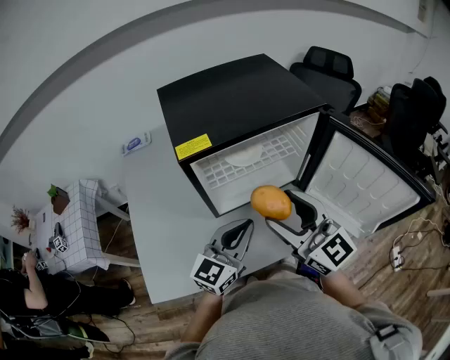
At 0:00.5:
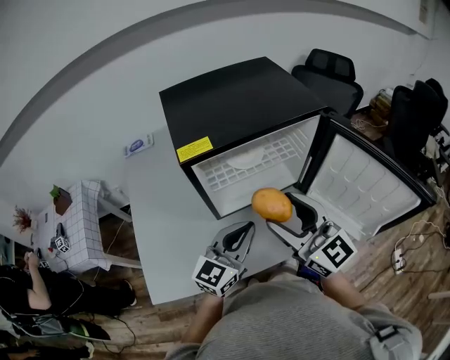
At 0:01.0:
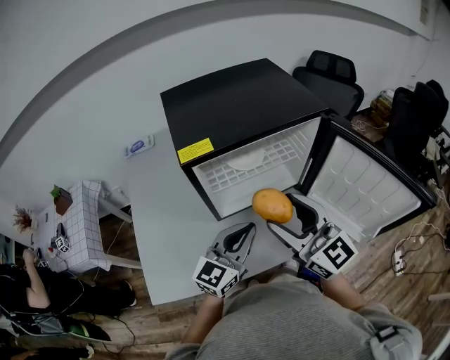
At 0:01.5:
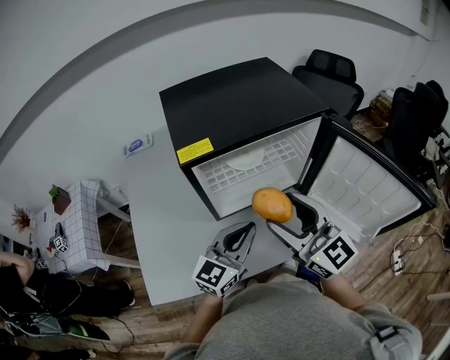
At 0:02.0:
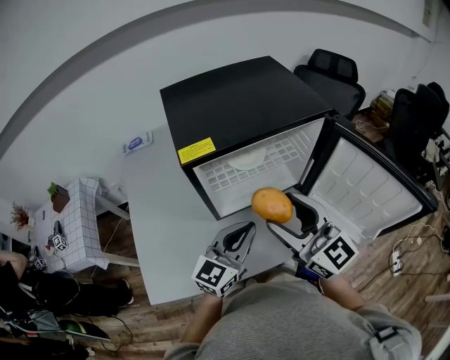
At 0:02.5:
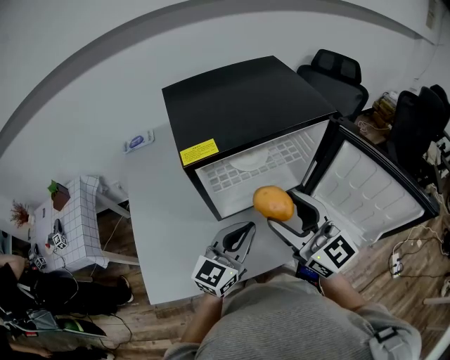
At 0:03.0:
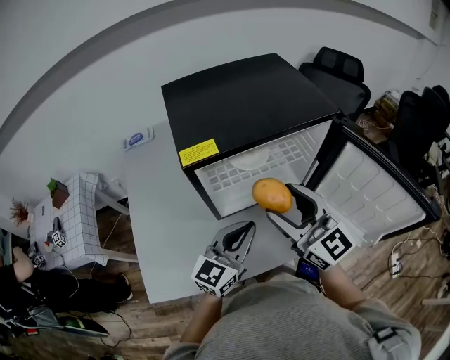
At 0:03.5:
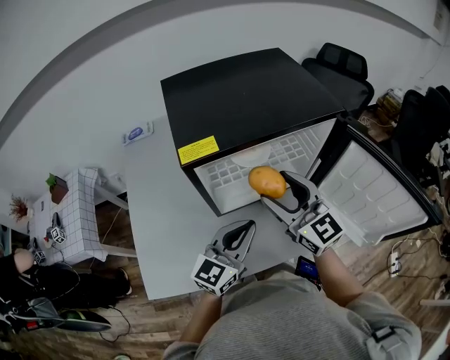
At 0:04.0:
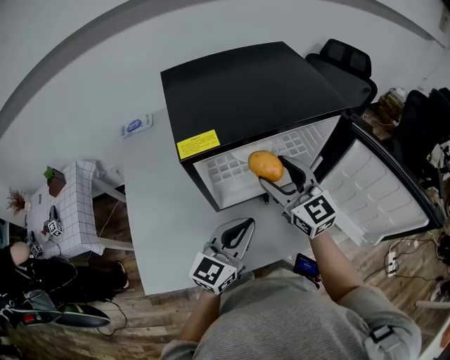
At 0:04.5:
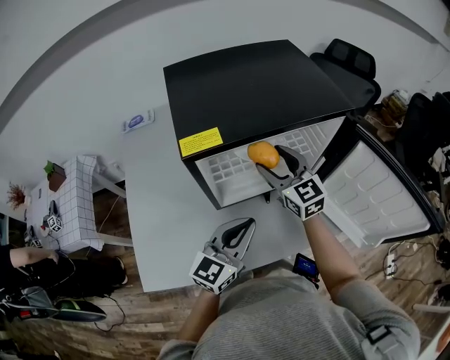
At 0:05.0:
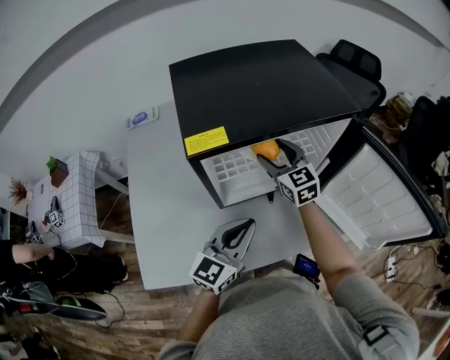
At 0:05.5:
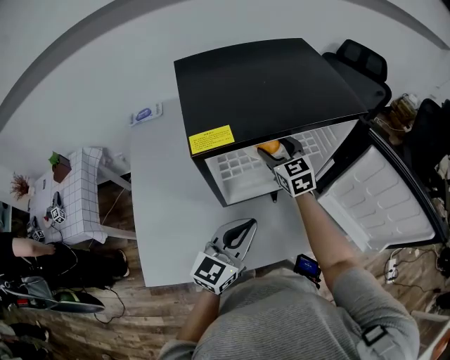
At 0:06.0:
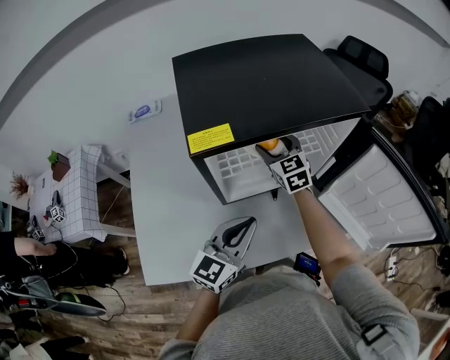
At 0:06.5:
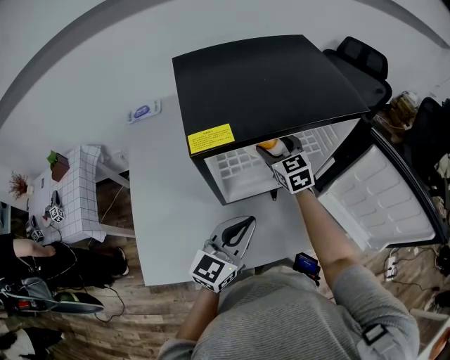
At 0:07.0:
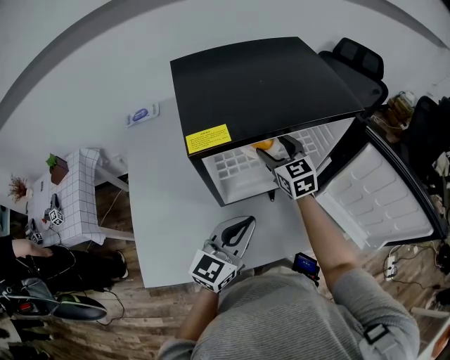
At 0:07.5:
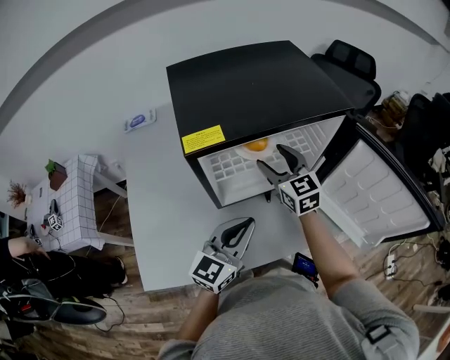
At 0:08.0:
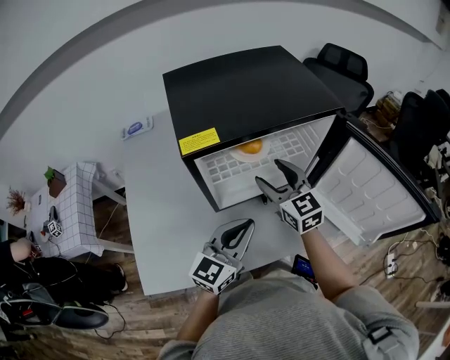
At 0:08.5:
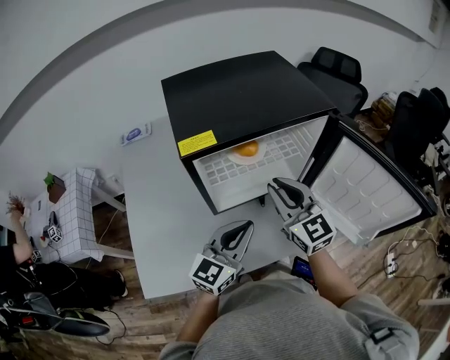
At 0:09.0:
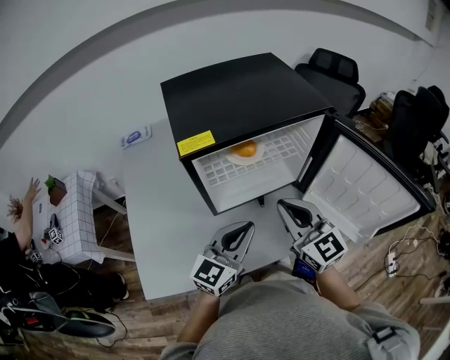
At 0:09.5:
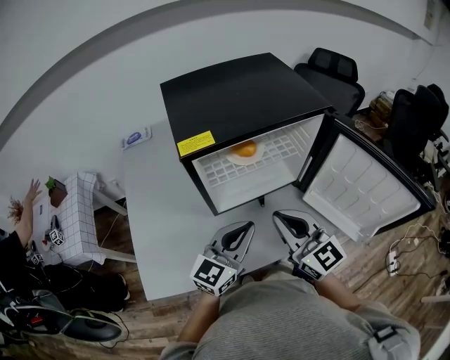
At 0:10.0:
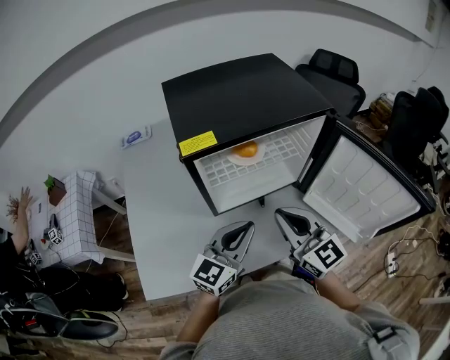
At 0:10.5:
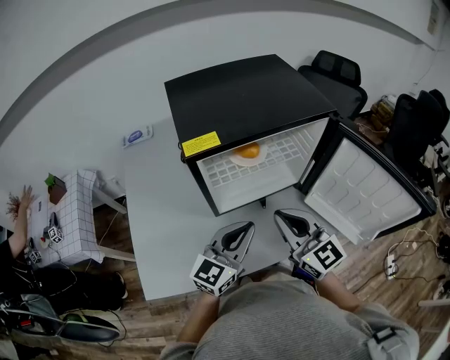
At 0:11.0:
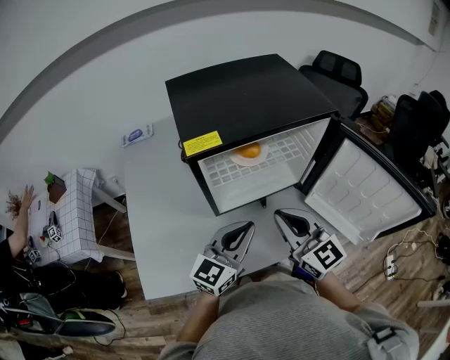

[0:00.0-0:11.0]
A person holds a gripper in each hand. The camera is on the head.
0:00.0 to 0:02.0: Neither gripper changes place.
0:02.0 to 0:03.5: The right gripper is displaced forward by approximately 10 cm.
0:03.5 to 0:05.5: The right gripper moves forward and downward, approximately 20 cm, and swivels approximately 20 degrees.
0:05.5 to 0:07.5: The right gripper goes approximately 5 cm backward.
0:07.5 to 0:09.0: The right gripper travels backward and upward by some 20 cm, and closes.
0:09.0 to 0:11.0: There are only small adjustments of the grippers.

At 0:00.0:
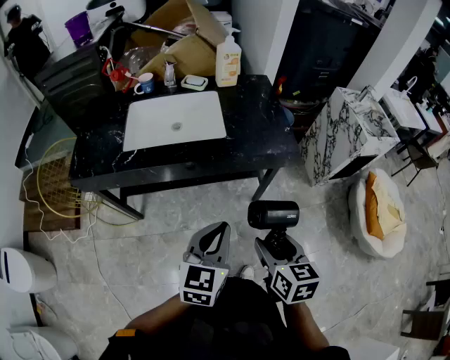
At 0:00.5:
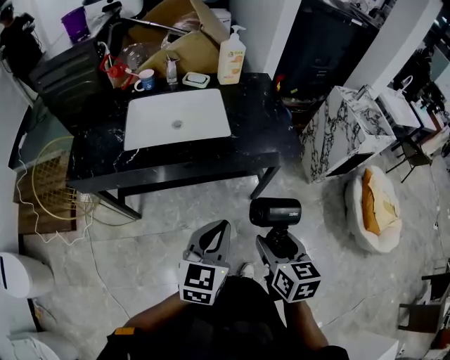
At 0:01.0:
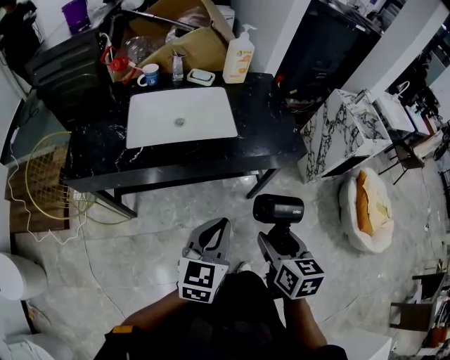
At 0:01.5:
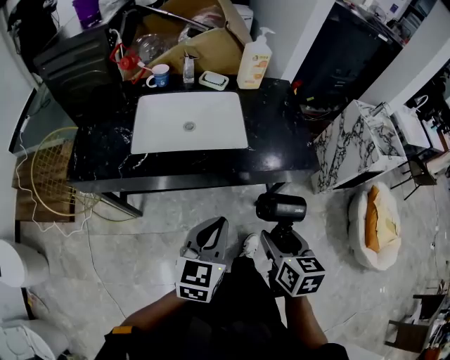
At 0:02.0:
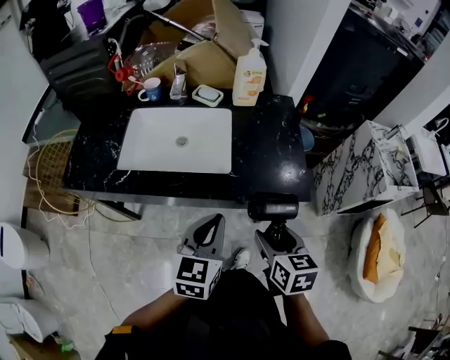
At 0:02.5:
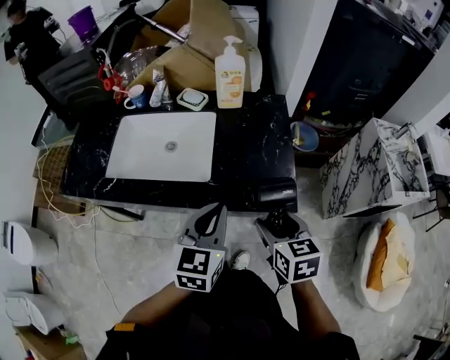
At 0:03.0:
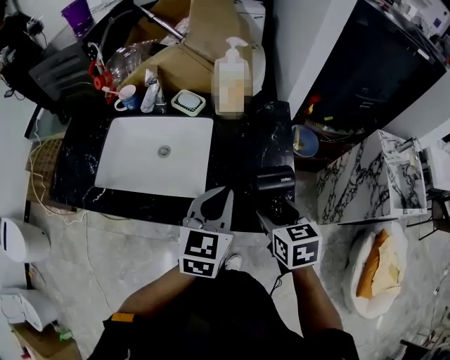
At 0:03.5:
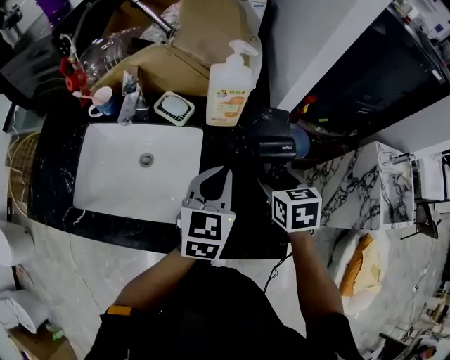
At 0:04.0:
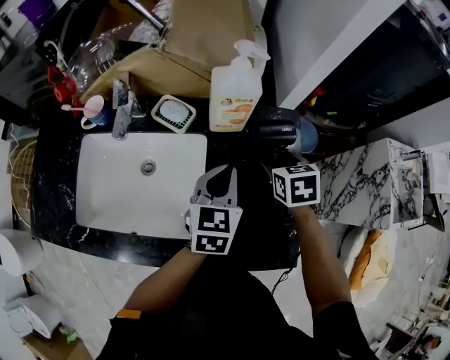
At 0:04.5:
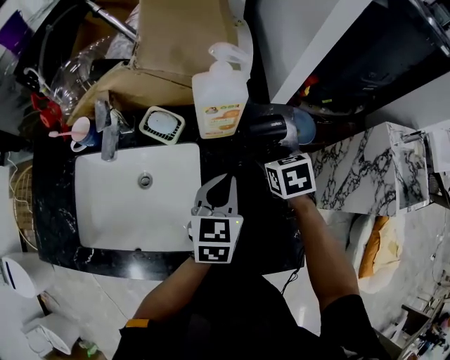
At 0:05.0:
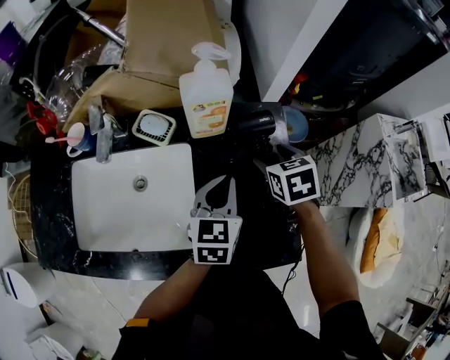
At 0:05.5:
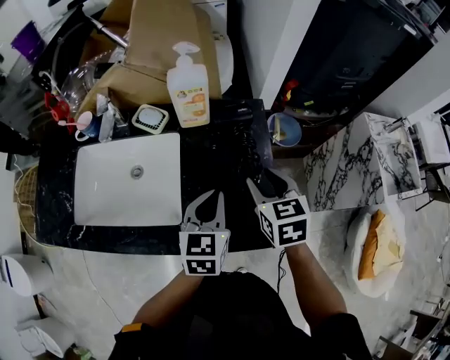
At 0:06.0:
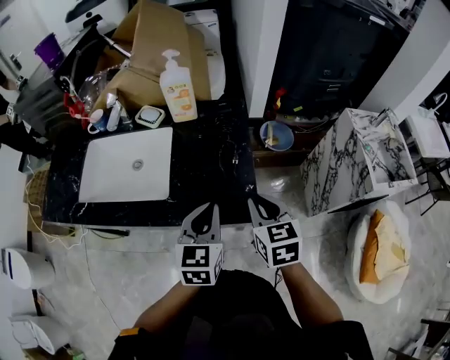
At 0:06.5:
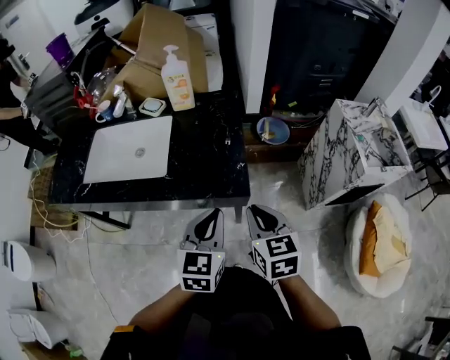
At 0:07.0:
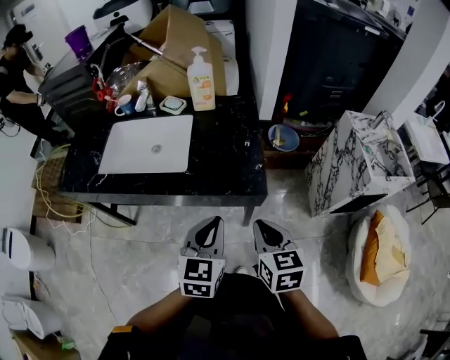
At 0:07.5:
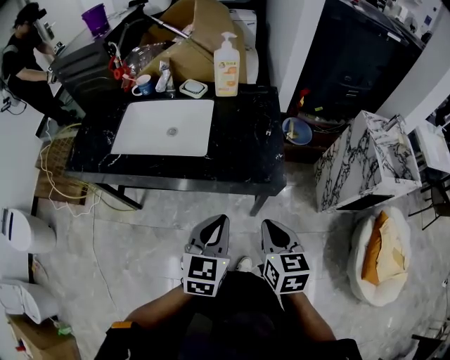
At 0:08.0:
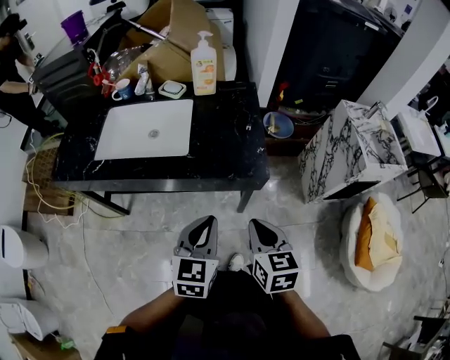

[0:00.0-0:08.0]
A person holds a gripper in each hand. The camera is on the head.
0:00.0 to 0:02.0: The grippers both shift forward by roughly 20 cm.
0:02.0 to 0:04.0: The grippers both shift forward by about 40 cm. The right gripper rotates roughly 20 degrees.
0:04.0 to 0:06.0: The right gripper heads backward, covering about 25 cm, swivels some 20 degrees, and closes its fingers, while the left gripper moves backward and to the right, some 25 cm.
0:06.0 to 0:08.0: The grippers both shift backward by roughly 20 cm.

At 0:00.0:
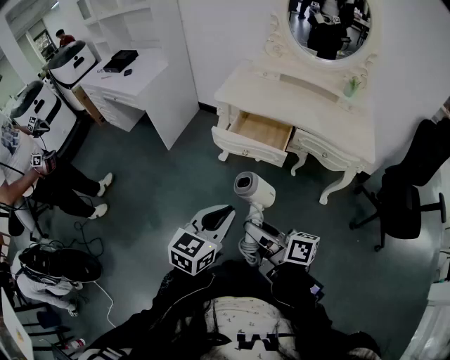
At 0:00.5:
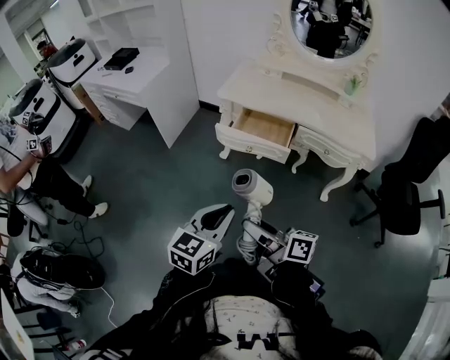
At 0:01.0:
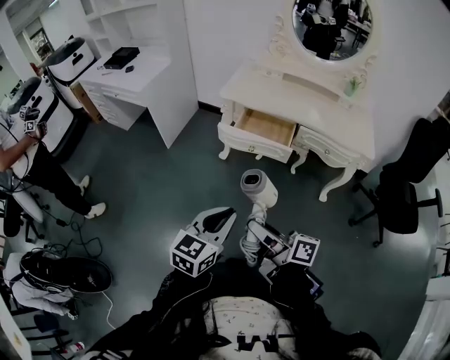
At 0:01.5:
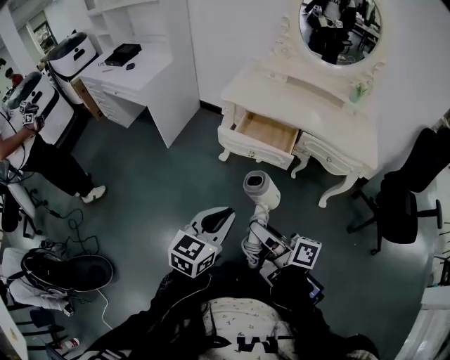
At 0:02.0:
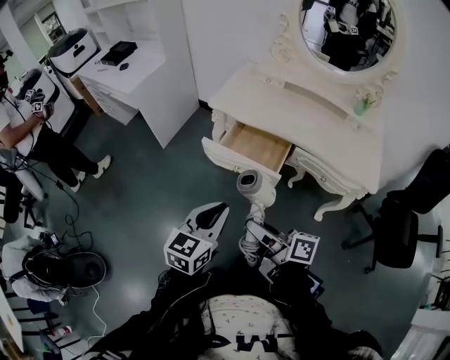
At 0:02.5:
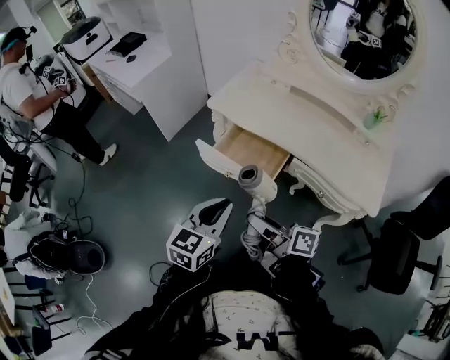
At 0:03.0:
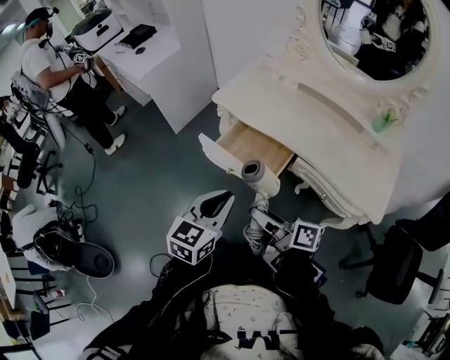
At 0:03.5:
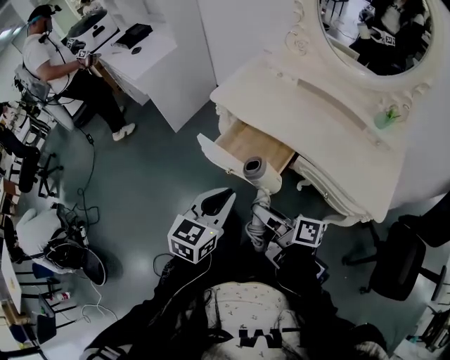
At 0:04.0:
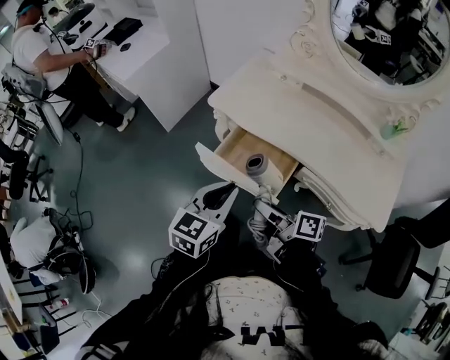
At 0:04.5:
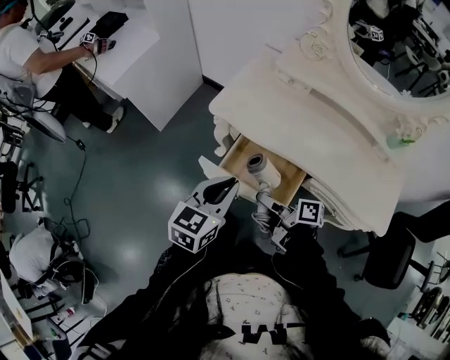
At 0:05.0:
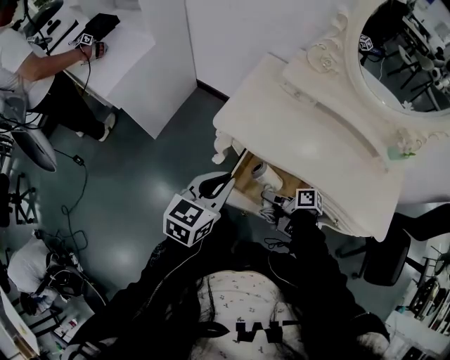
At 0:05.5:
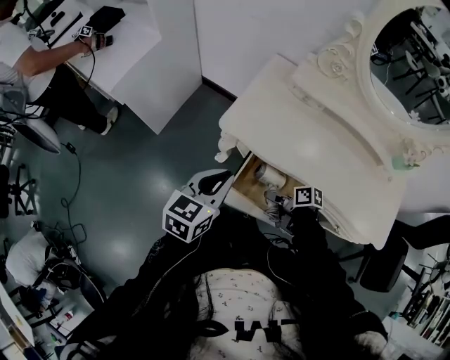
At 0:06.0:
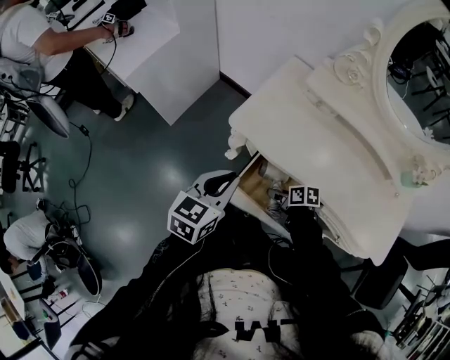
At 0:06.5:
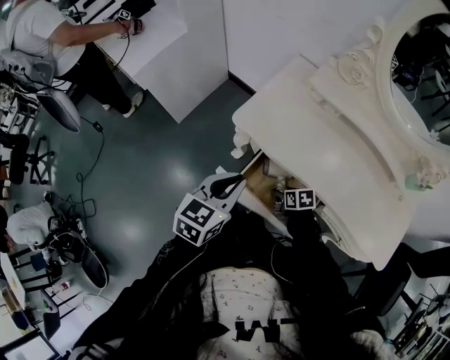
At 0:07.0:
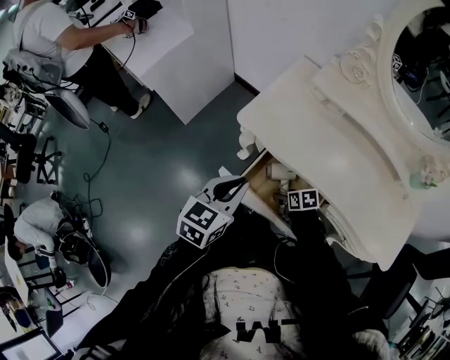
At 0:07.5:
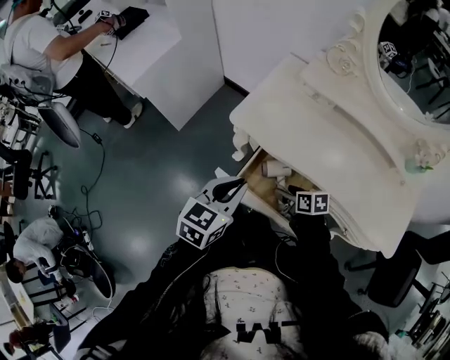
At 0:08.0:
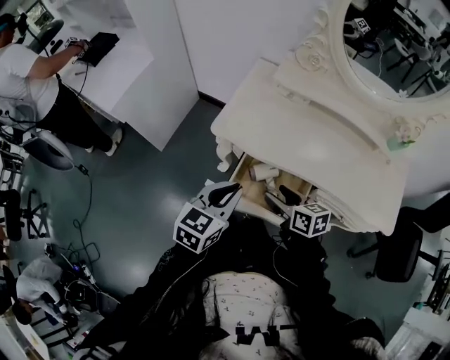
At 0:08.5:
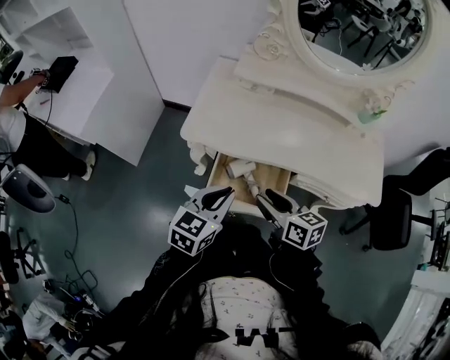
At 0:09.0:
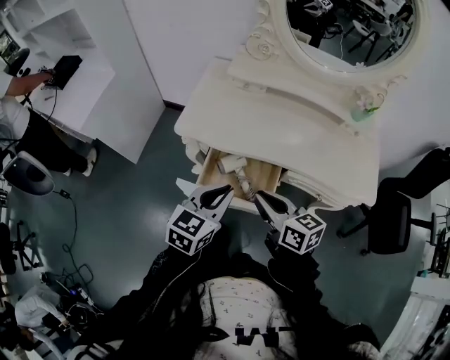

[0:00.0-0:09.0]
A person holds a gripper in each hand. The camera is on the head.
0:00.0 to 0:02.0: The left gripper is displaced forward by roughly 10 cm; the right gripper is displaced forward and to the right by some 15 cm.
0:02.0 to 0:04.5: The right gripper is displaced forward and downward by roughly 30 cm, and turns by some 30 degrees. The left gripper goes approximately 25 cm forward.
0:04.5 to 0:07.0: The right gripper shifts some 20 cm downward and forward, and tilts its fingers some 40 degrees downward. Meanwhile the left gripper goes some 5 cm forward.
0:07.0 to 0:09.0: The left gripper changes place by some 10 cm, and changes its angle by some 20 degrees; the right gripper heads upward, covering approximately 30 cm, tilts its fingers some 40 degrees upward, and closes its fingers.
